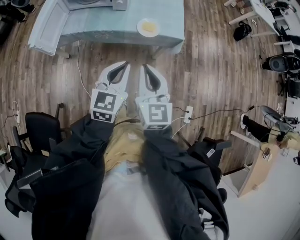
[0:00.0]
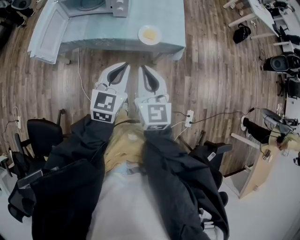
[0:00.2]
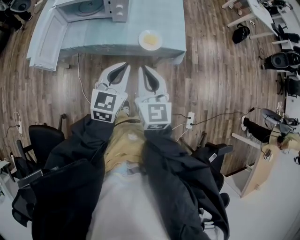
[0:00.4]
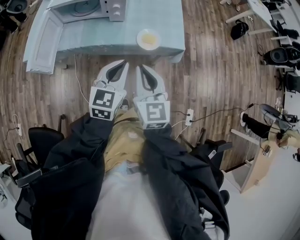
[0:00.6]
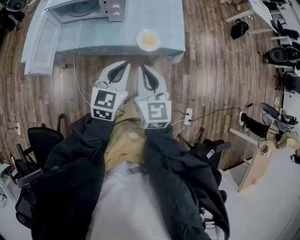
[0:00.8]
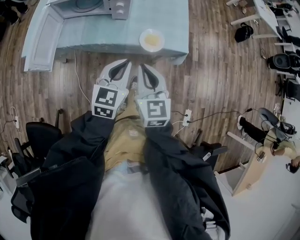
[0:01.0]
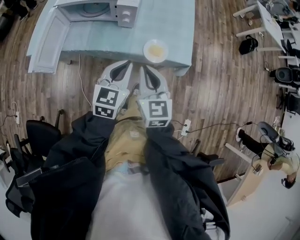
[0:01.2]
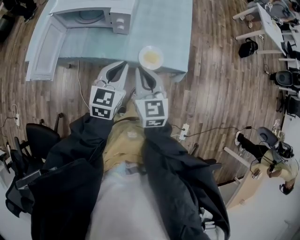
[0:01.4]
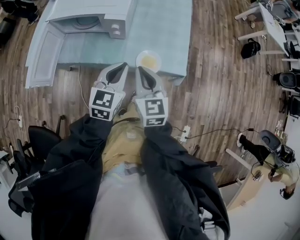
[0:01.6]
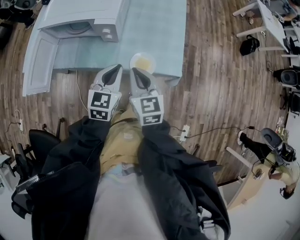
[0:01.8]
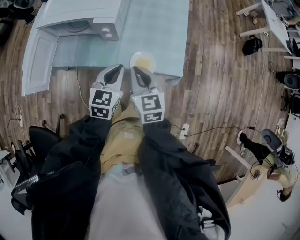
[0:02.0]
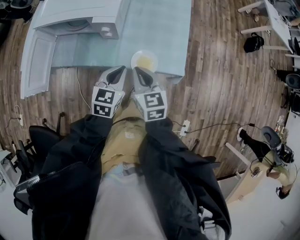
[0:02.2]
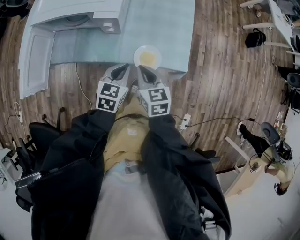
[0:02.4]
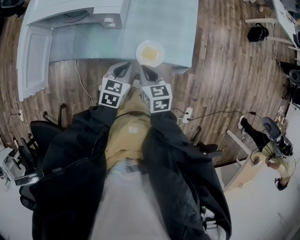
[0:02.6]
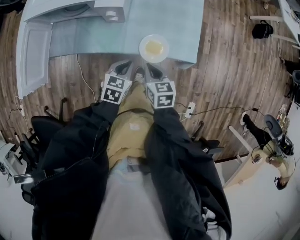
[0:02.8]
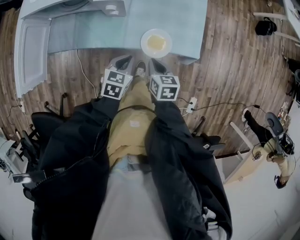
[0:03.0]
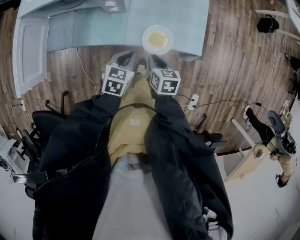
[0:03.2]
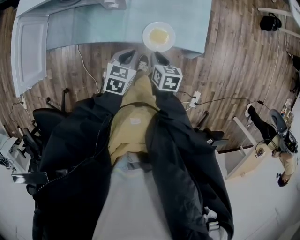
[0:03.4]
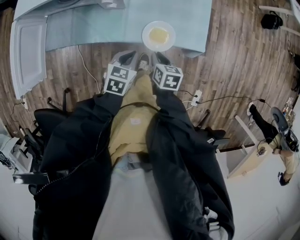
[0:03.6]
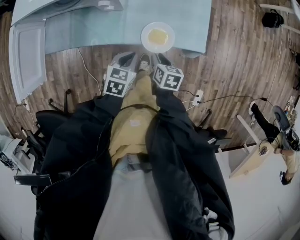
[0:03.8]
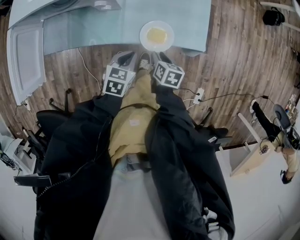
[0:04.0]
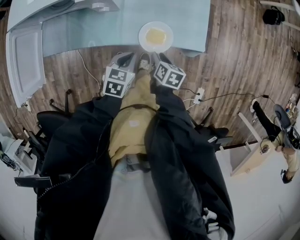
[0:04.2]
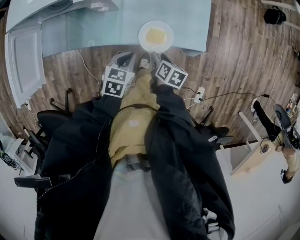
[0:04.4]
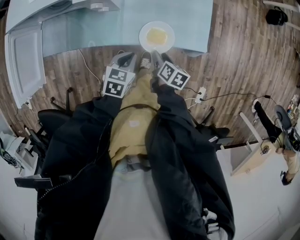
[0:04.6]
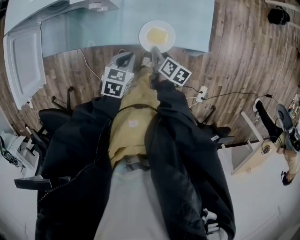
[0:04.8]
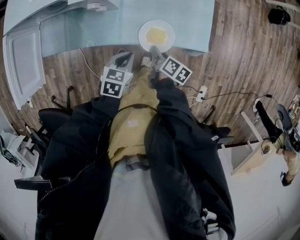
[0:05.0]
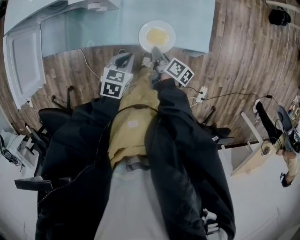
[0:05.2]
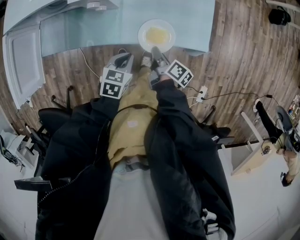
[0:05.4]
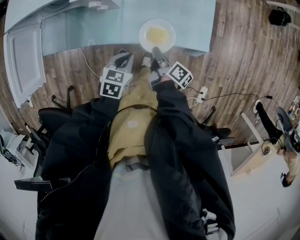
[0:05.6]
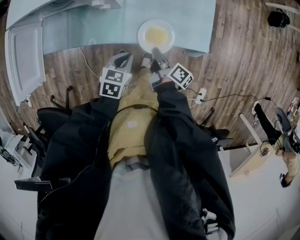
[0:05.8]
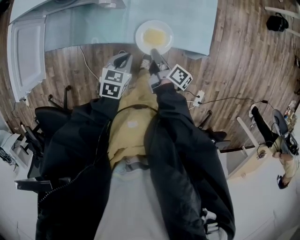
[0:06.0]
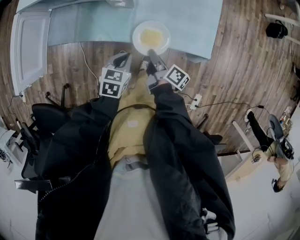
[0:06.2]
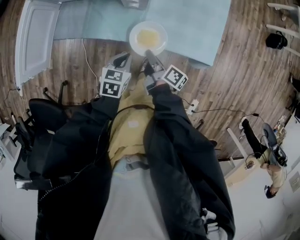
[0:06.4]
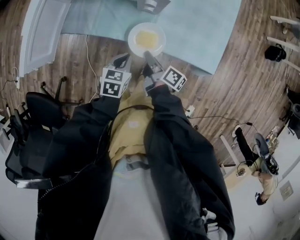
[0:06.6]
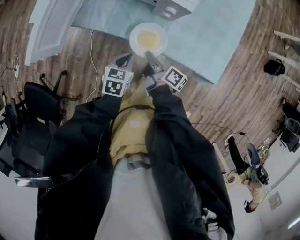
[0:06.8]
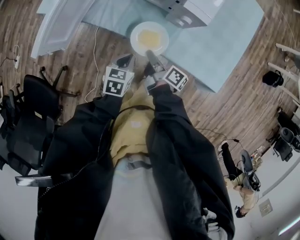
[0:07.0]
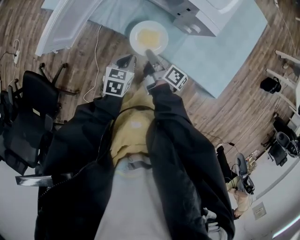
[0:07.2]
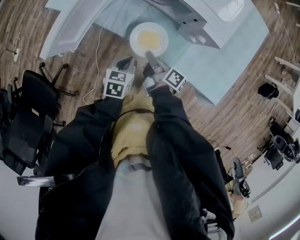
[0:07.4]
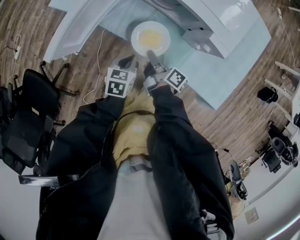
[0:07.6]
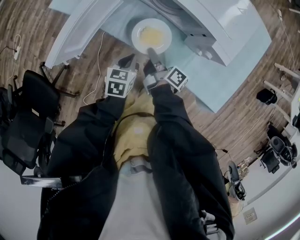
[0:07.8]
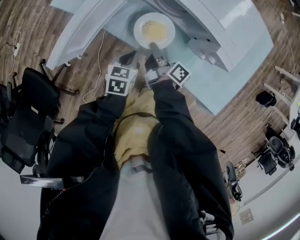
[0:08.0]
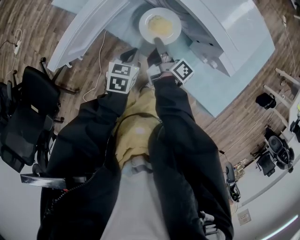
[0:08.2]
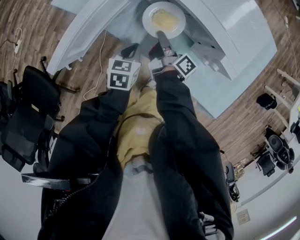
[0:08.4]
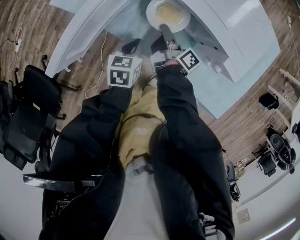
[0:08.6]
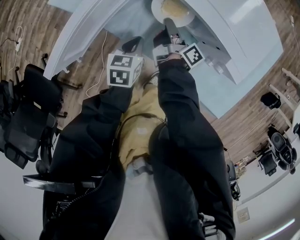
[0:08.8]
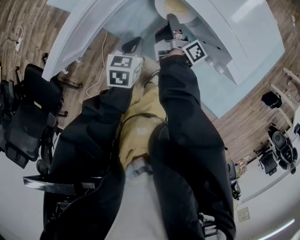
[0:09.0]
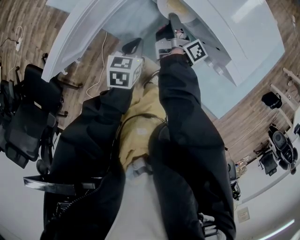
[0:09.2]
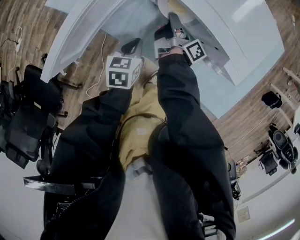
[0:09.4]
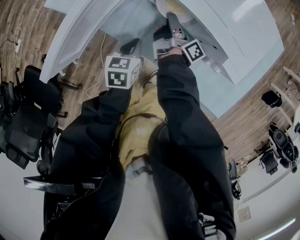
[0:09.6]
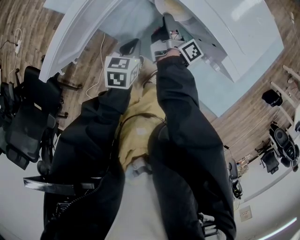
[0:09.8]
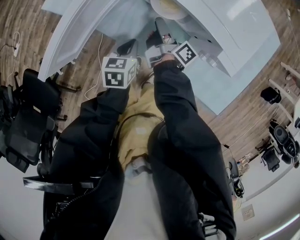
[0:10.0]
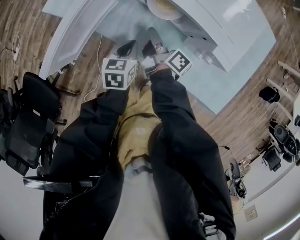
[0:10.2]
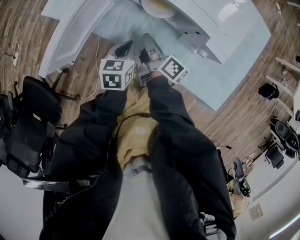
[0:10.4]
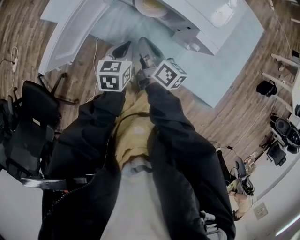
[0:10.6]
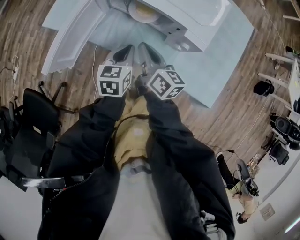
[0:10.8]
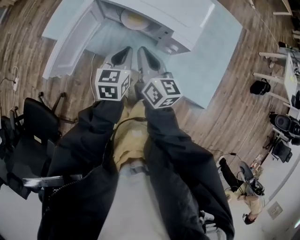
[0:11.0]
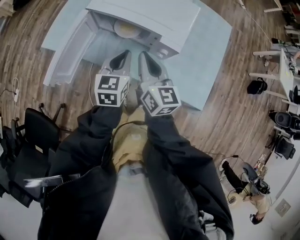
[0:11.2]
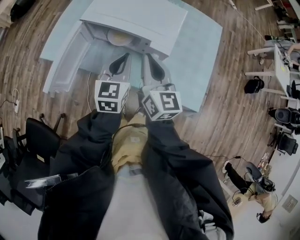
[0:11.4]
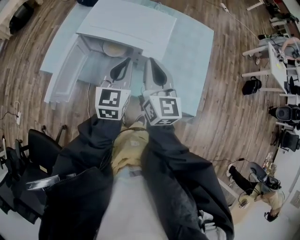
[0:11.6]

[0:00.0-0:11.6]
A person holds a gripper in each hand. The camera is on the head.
0:00.0 to 0:01.4: The grippers both shift forward by about 20 cm.
0:01.4 to 0:02.8: The grippers both shift downward by about 20 cm. The right gripper turns by about 30 degrees; the left gripper swivels roughly 30 degrees.
0:02.8 to 0:04.4: The left gripper ends up roughly 5 cm from where it was; the right gripper travels downward and to the right by some 15 cm, rotates some 40 degrees, and opens up.
0:04.4 to 0:05.8: The right gripper changes its angle by roughly 40 degrees, and closes.
0:05.8 to 0:07.2: The left gripper shifts by about 20 cm, and rotates roughly 30 degrees. Meanwhile the right gripper shifts by approximately 25 cm, and swivels some 30 degrees.
0:07.2 to 0:08.8: The right gripper goes approximately 20 cm forward, while the left gripper travels forward and to the left by about 15 cm.
0:08.8 to 0:10.2: The right gripper moves roughly 5 cm.
0:10.2 to 0:11.6: Both grippers travel together upward and to the right, approximately 35 cm. The right gripper twists about 70 degrees counterclockwise, seen from behind. Meanwhile the left gripper tilts its fingers about 30 degrees upward.

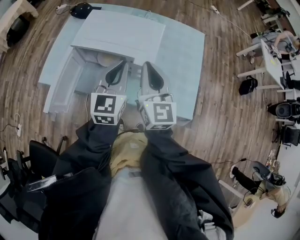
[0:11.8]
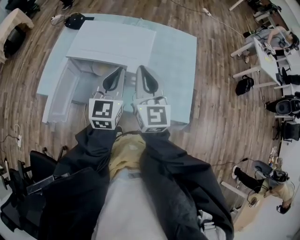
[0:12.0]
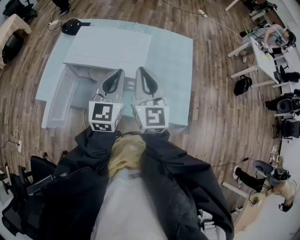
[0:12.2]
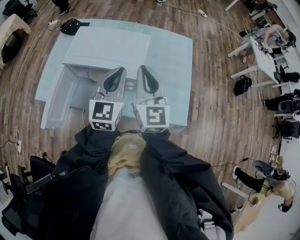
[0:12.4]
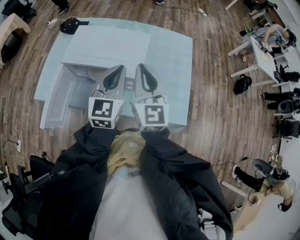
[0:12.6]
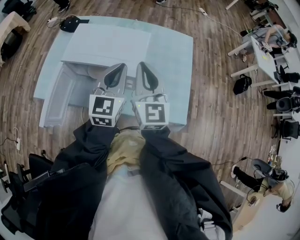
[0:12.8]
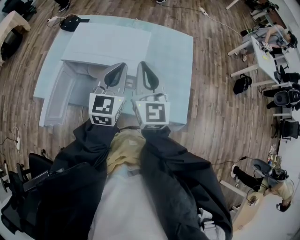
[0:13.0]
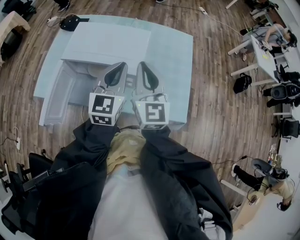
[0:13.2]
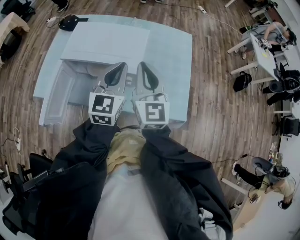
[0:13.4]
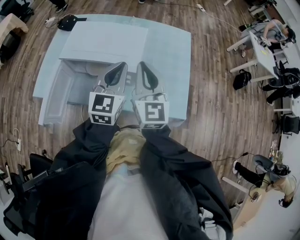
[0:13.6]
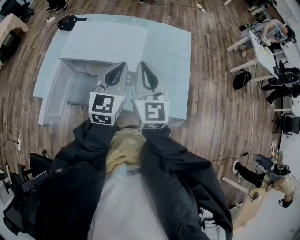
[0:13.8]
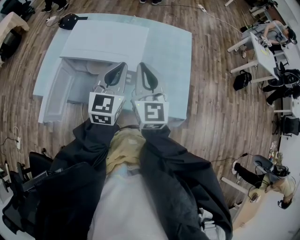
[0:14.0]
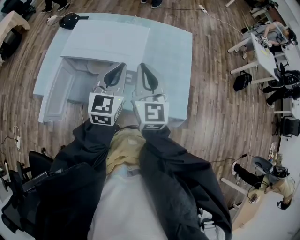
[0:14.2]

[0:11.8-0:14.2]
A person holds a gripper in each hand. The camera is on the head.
0:11.8 to 0:13.0: The left gripper changes place by about 5 cm.
0:13.0 to 0:14.2: The grippers stay close to where they were, moving slightly.

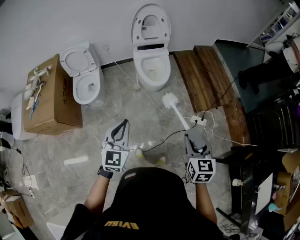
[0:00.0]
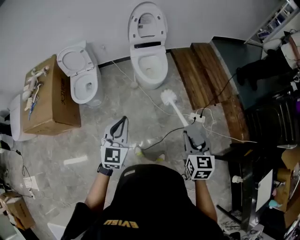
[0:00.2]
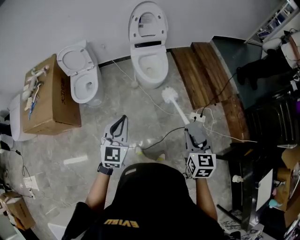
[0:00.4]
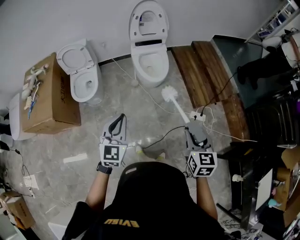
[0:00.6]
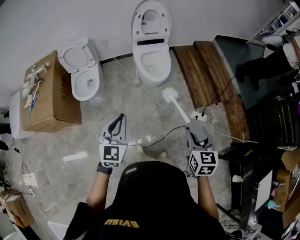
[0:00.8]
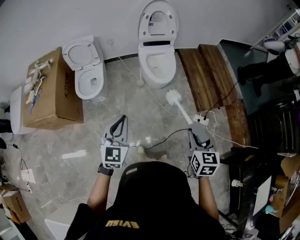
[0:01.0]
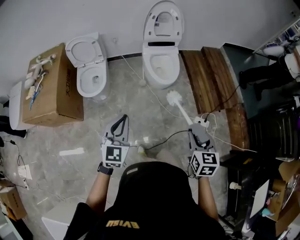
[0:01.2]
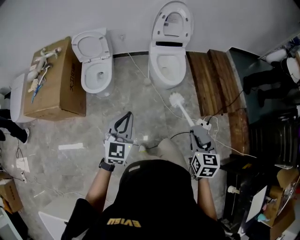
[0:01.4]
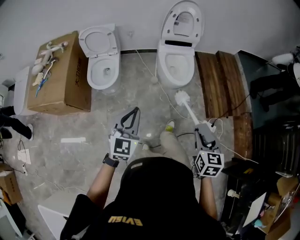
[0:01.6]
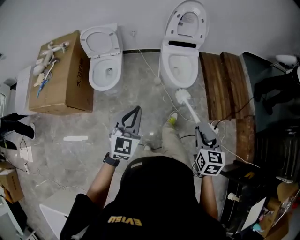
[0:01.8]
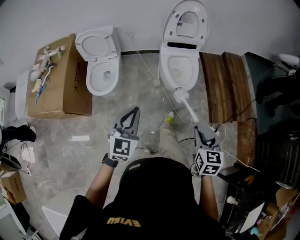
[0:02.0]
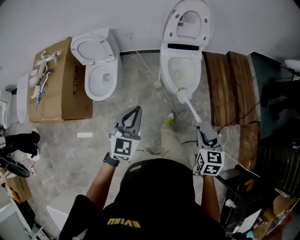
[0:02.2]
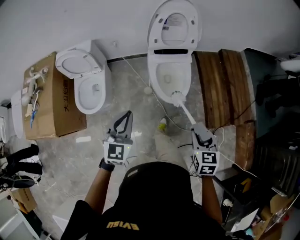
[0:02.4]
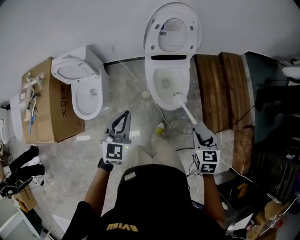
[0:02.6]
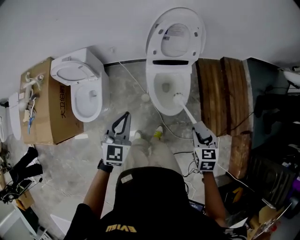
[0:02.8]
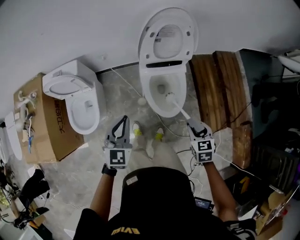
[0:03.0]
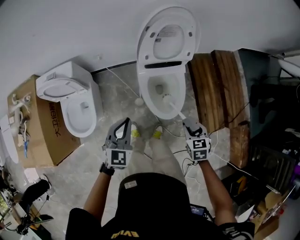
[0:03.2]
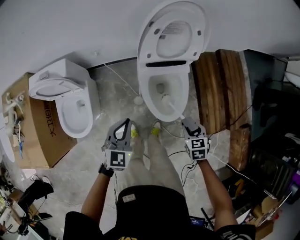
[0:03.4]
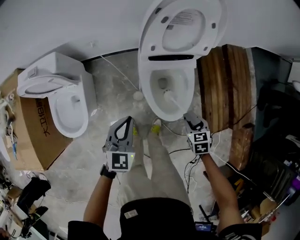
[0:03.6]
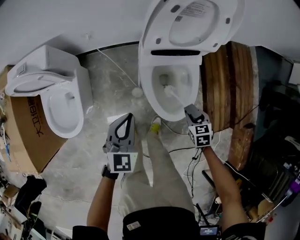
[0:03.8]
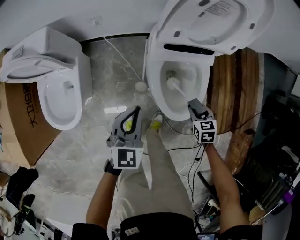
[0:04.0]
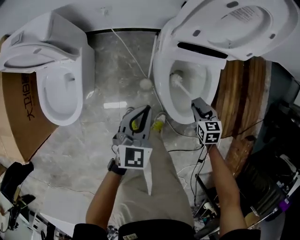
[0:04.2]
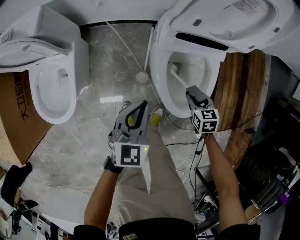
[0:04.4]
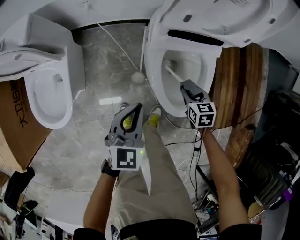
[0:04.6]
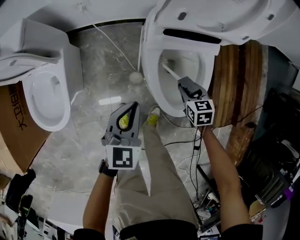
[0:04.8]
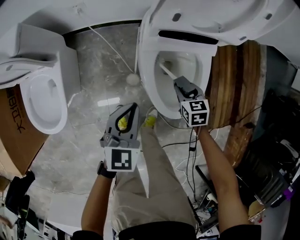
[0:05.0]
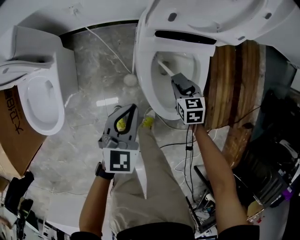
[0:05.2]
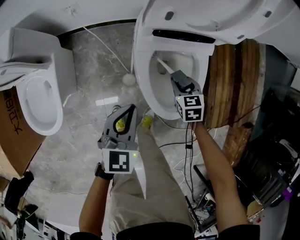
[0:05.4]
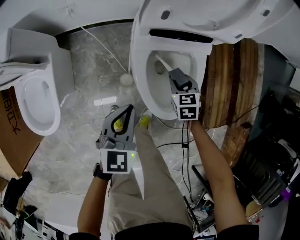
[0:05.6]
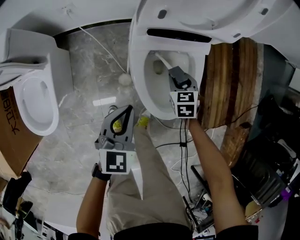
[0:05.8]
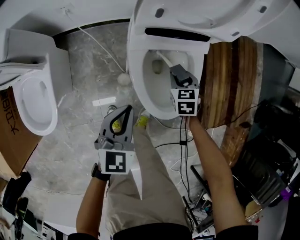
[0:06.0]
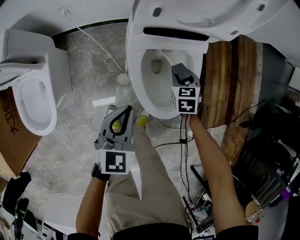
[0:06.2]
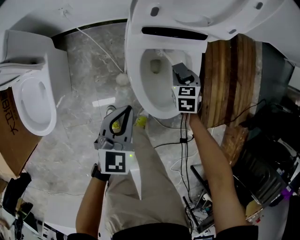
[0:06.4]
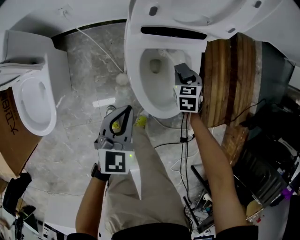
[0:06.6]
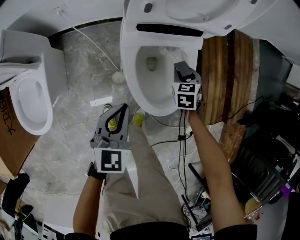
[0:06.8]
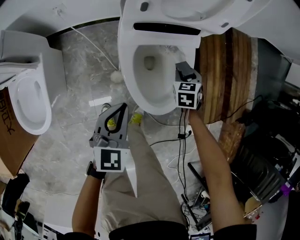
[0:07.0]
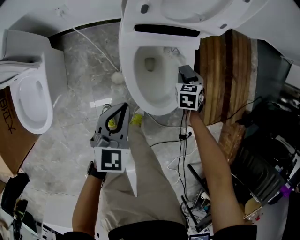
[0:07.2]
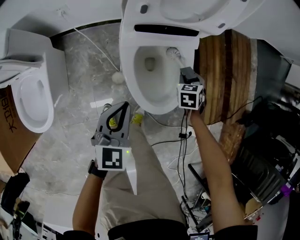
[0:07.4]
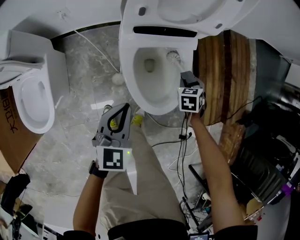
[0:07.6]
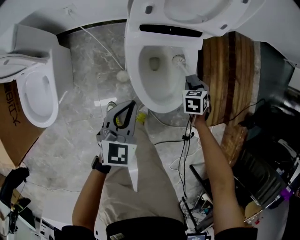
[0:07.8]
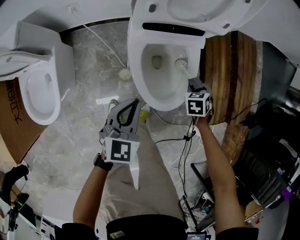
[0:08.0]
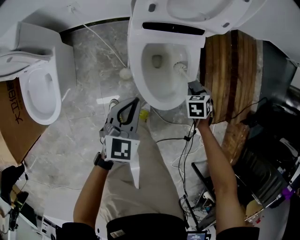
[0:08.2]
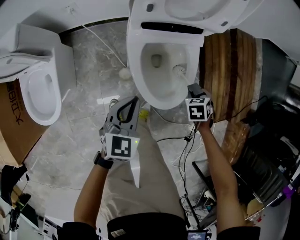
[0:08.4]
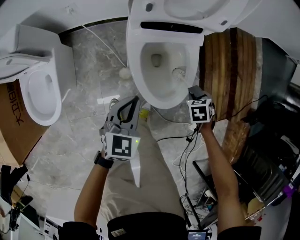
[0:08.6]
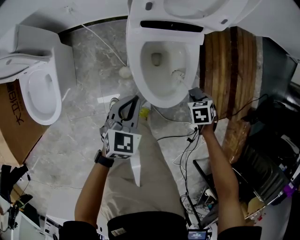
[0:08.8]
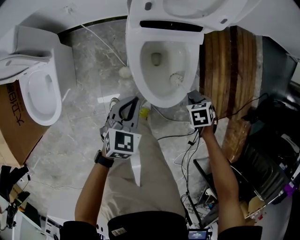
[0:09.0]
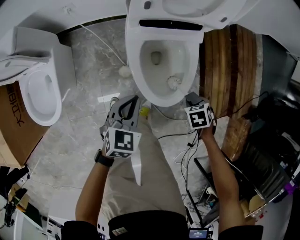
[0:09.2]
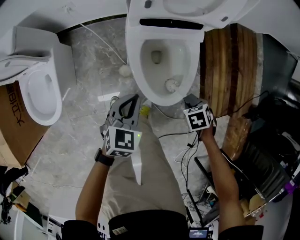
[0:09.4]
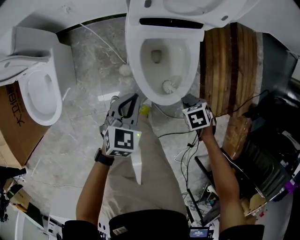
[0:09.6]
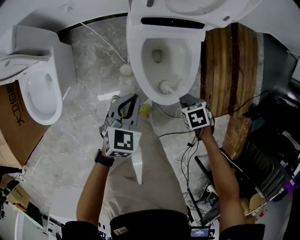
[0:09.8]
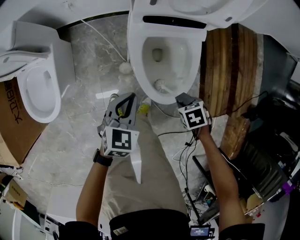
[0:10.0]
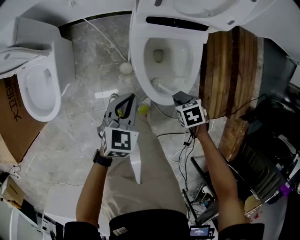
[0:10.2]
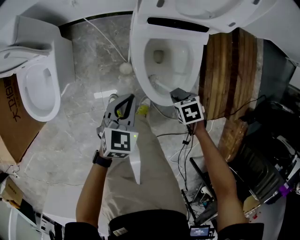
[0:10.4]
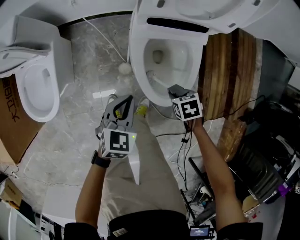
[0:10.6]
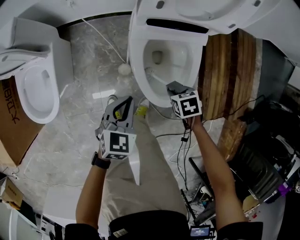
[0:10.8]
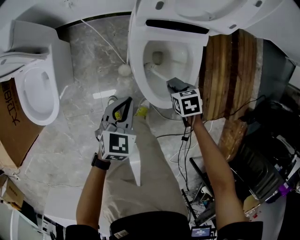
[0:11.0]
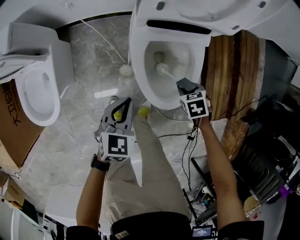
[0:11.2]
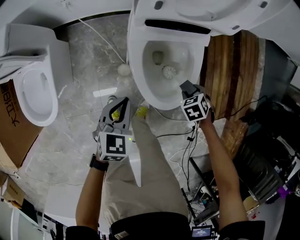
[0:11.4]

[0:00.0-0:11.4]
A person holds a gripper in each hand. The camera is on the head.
0:00.0 to 0:01.4: The right gripper heads to the left and forward, covering about 10 cm. Meanwhile the left gripper goes some 10 cm to the left.
0:01.4 to 0:02.8: Both grippers are carried forward, about 50 cm.
0:02.8 to 0:04.2: Both grippers move downward and forward, some 40 cm.
0:04.2 to 0:05.6: The right gripper is displaced forward by about 10 cm. The left gripper heads to the right, covering roughly 5 cm.
0:05.6 to 0:07.2: The right gripper travels to the right by some 10 cm.
0:07.2 to 0:08.6: The right gripper changes place by about 10 cm.
0:08.6 to 0:10.0: The right gripper moves some 10 cm.
0:10.0 to 0:11.4: The right gripper ends up approximately 10 cm from where it was.
